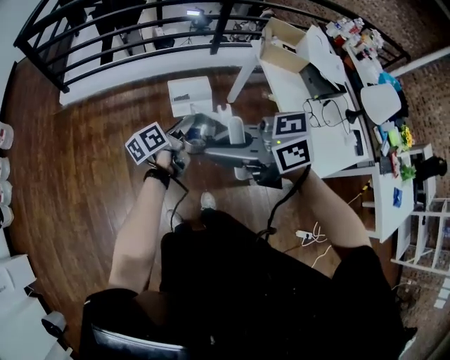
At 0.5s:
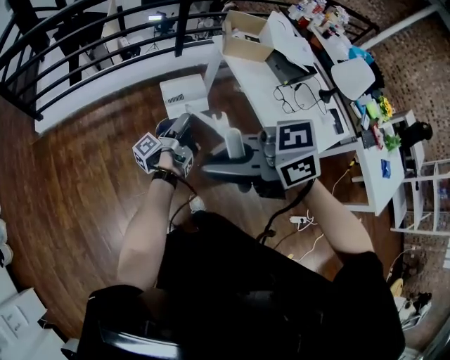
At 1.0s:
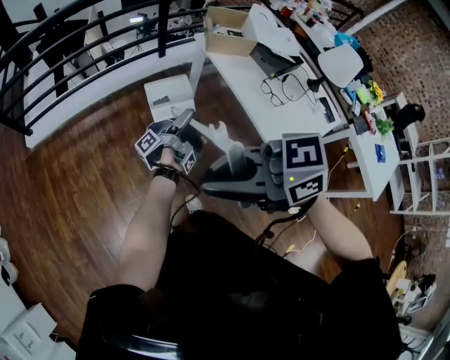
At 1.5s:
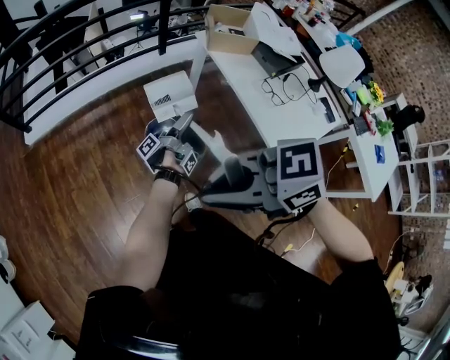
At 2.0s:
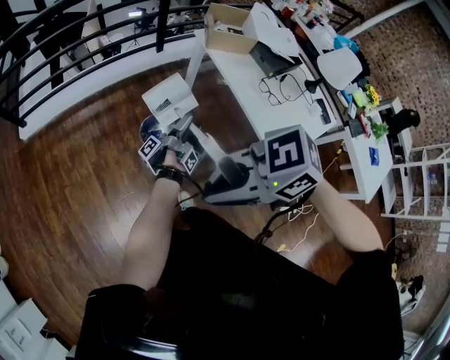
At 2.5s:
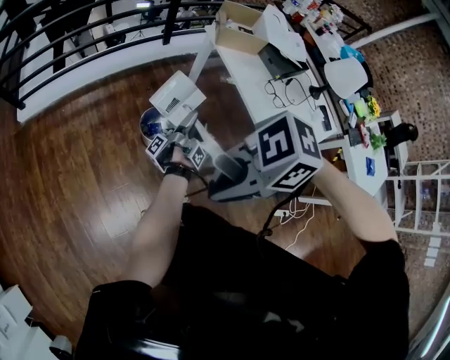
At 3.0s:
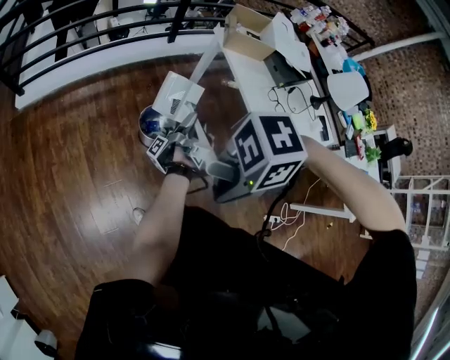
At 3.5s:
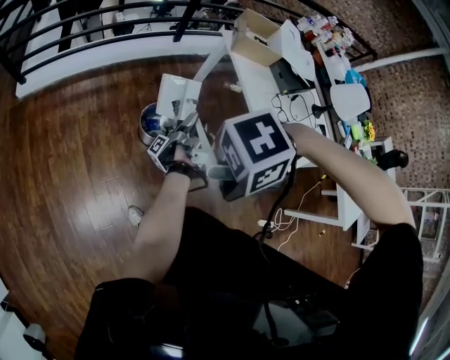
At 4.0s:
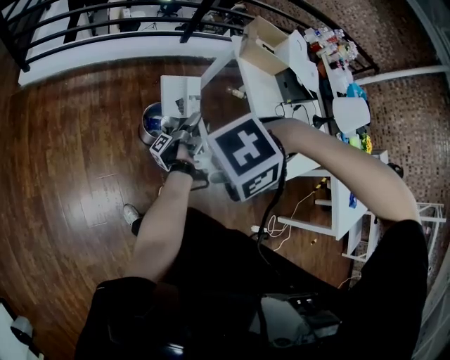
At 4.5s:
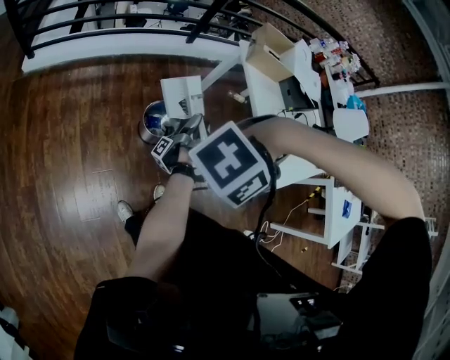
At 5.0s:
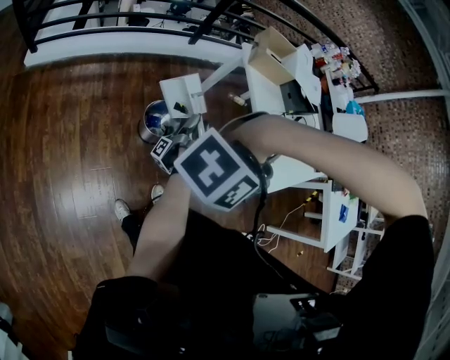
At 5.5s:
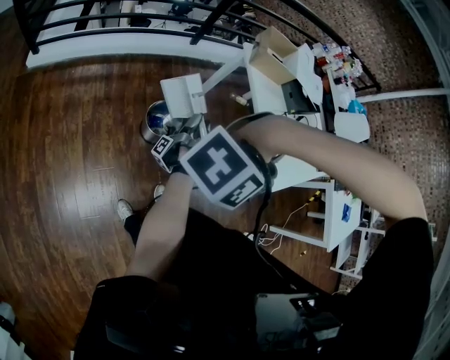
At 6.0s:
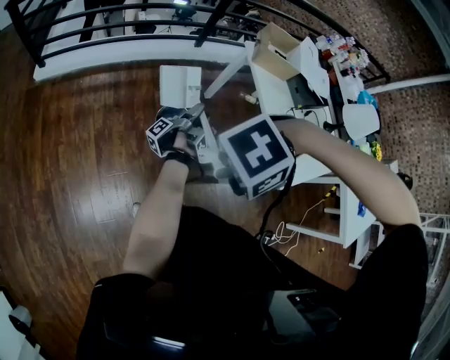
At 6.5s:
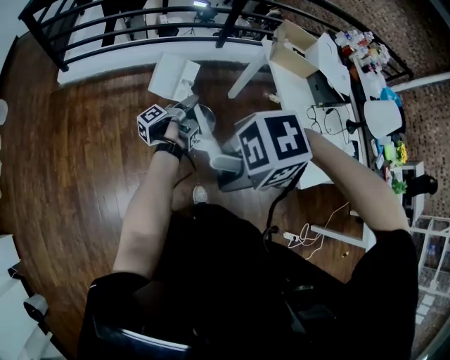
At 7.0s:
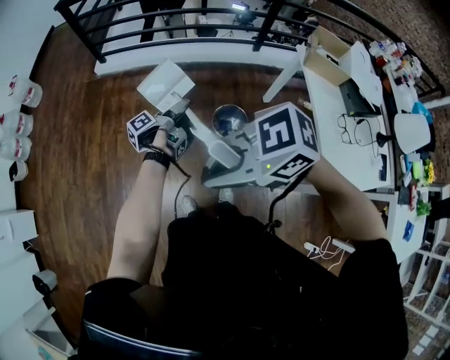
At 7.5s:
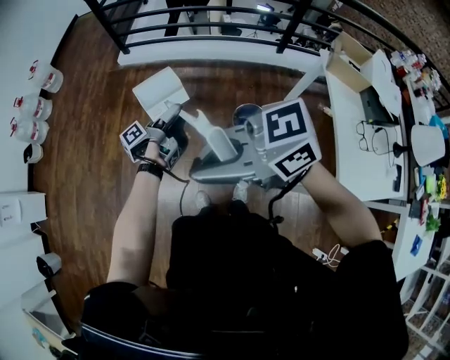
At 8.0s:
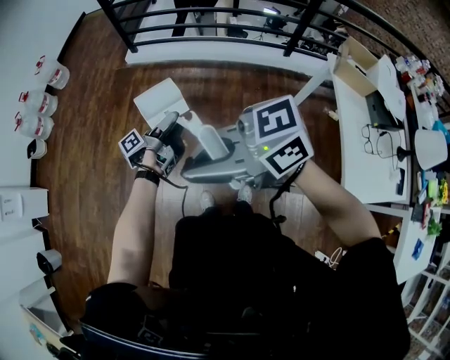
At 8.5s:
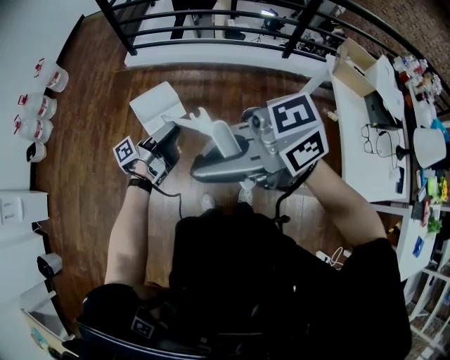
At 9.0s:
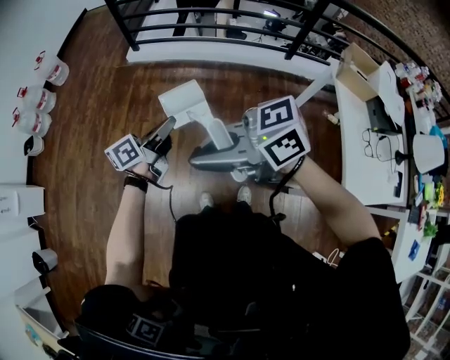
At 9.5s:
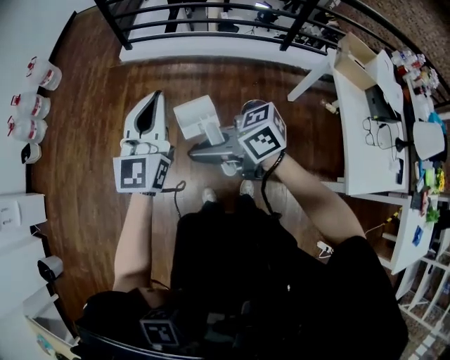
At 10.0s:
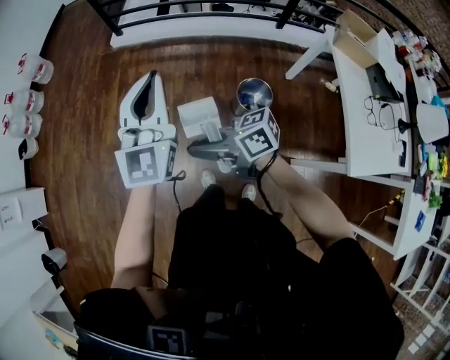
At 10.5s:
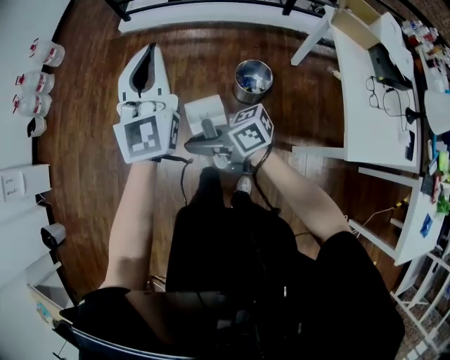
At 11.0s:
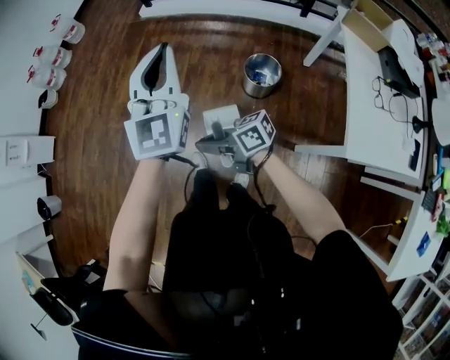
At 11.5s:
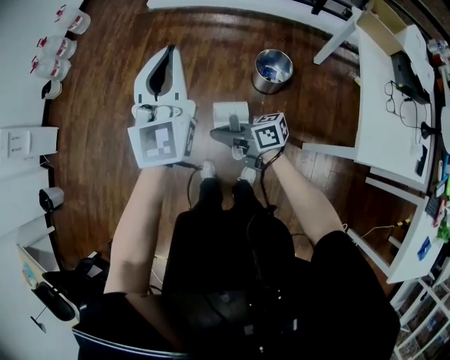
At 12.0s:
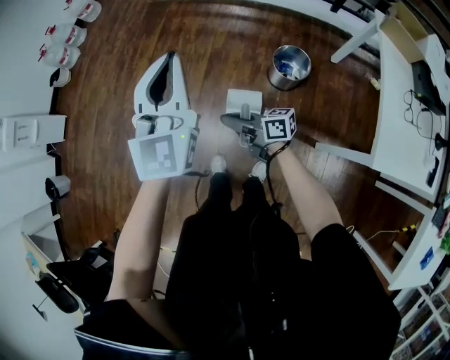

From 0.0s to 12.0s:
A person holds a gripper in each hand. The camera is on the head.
From 0.0s to 2.0s: The left gripper moves approximately 20 cm, and twists roughly 60 degrees counterclockwise, seen from behind; the right gripper moves roughly 10 cm.
From 2.0s to 4.0s: Both grippers move downward, roughly 5 cm. The left gripper changes its angle by some 30 degrees; the right gripper swivels some 80 degrees.
From 4.0s to 6.0s: The left gripper ends up approximately 5 cm from where it was.
From 6.0s to 8.0s: The left gripper ends up some 35 cm from where it was, and rotates about 40 degrees. Meanwhile the right gripper changes place by roughly 25 cm, and angles its fingers upward, by about 50 degrees.
From 8.0s to 10.0s: The left gripper heads upward, covering some 25 cm, twists roughly 100 degrees clockwise, seen from behind, and closes its fingers, while the right gripper goes roughly 20 cm downward, and changes its angle by roughly 30 degrees.
From 10.0s to 12.0s: The left gripper shifts approximately 15 cm backward, while the right gripper is displaced downward and backward by approximately 20 cm.

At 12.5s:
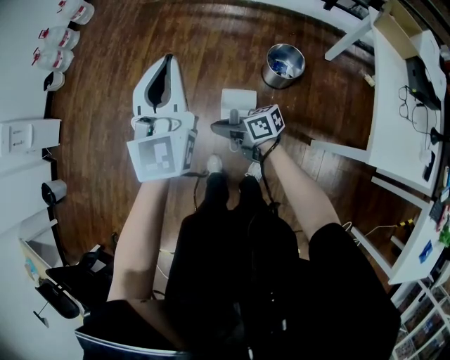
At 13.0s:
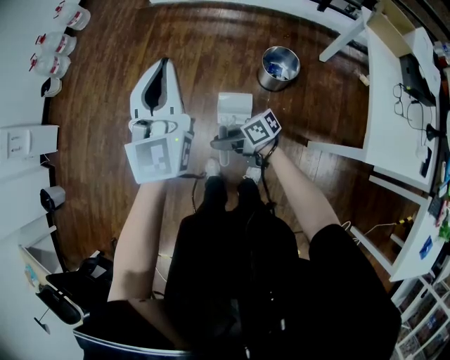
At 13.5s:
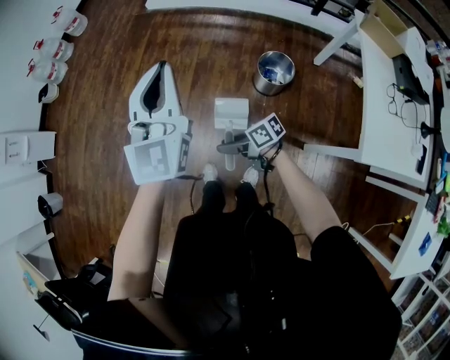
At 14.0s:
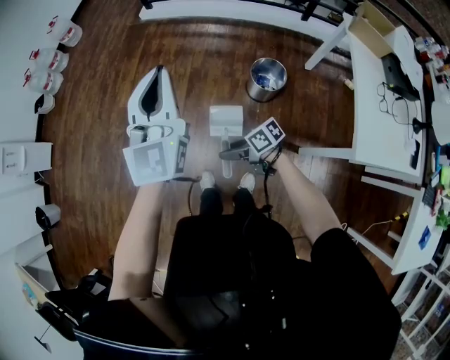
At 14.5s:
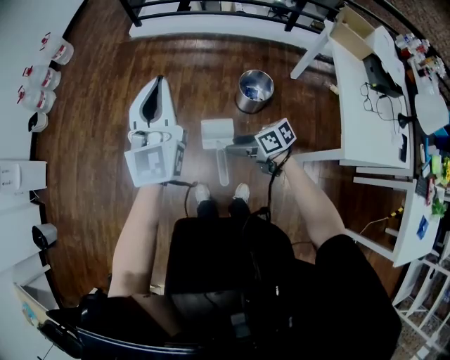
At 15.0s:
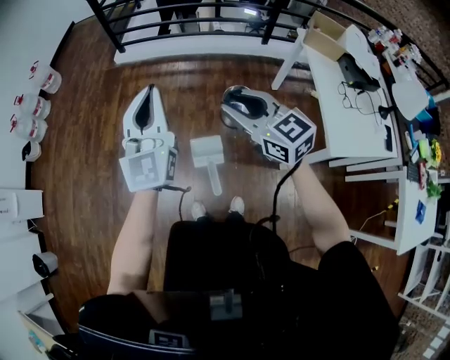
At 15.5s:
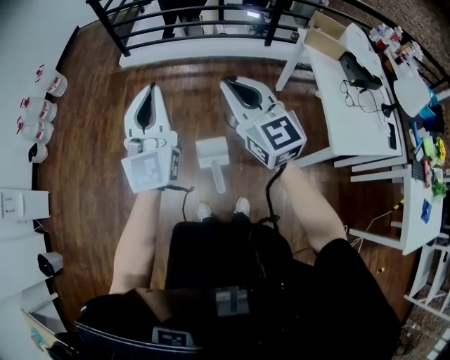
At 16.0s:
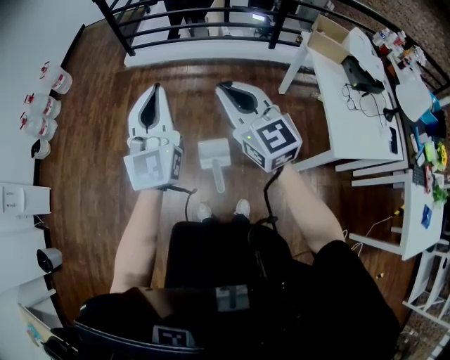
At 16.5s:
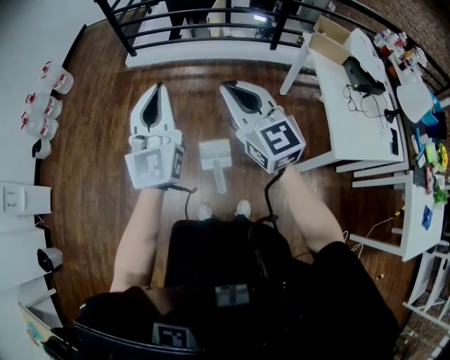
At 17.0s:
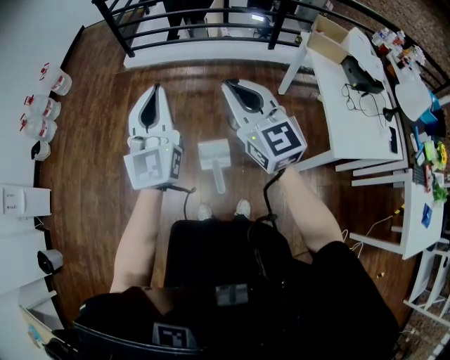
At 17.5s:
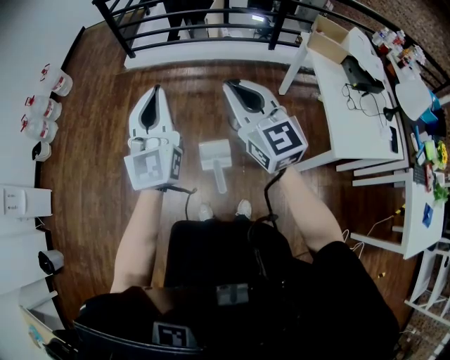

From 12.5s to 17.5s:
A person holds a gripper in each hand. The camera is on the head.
From 12.5s to 15.0s: The left gripper moves upward, approximately 5 cm; the right gripper travels upward by some 30 cm, changes its angle by roughly 70 degrees, and opens.
From 15.0s to 17.5s: The right gripper shifts about 5 cm upward, rotates about 20 degrees, and closes up.

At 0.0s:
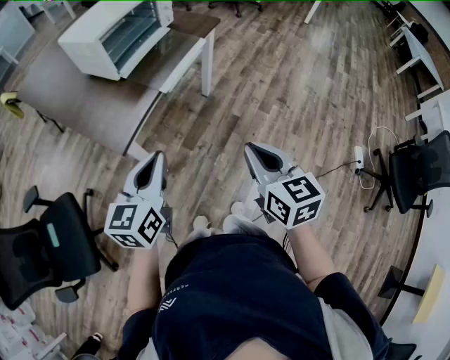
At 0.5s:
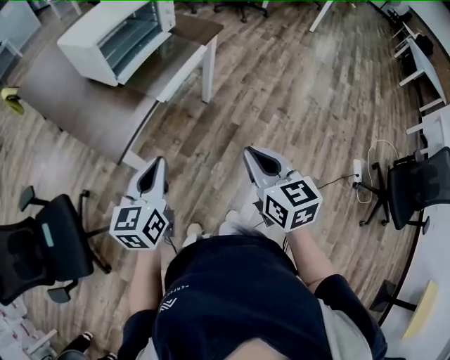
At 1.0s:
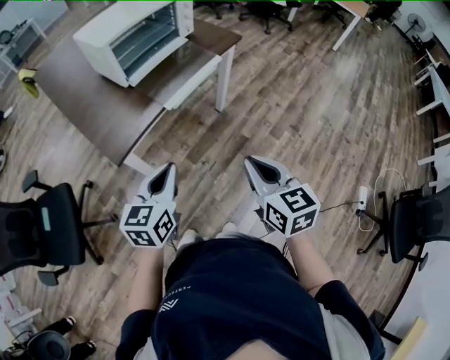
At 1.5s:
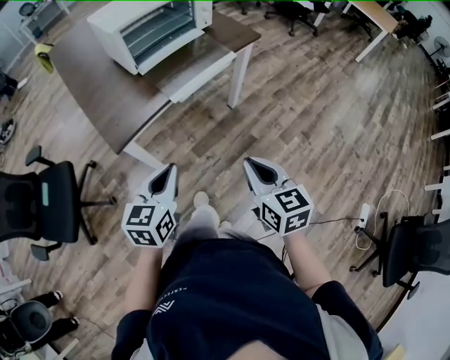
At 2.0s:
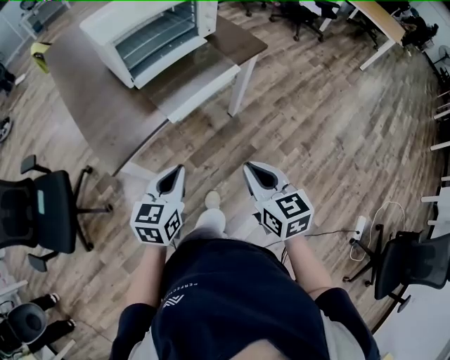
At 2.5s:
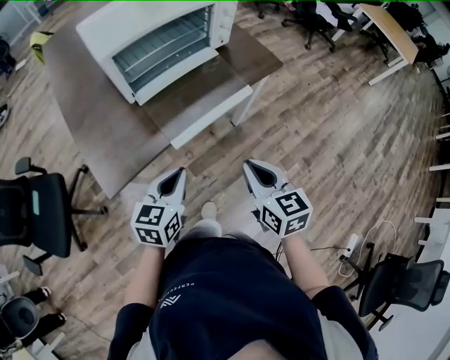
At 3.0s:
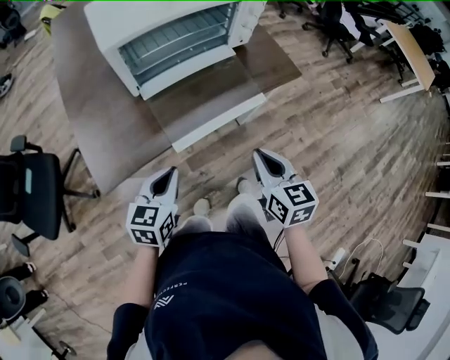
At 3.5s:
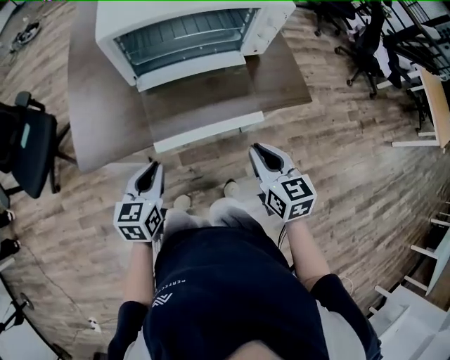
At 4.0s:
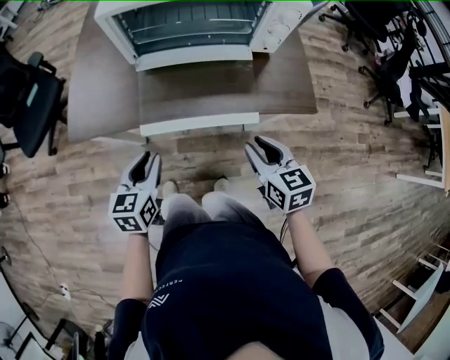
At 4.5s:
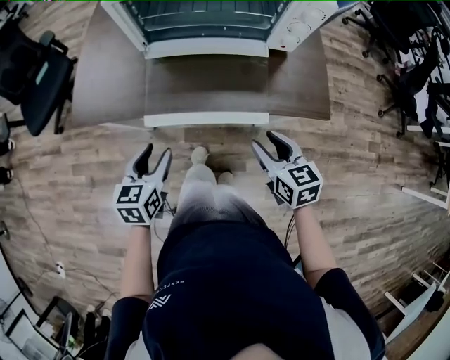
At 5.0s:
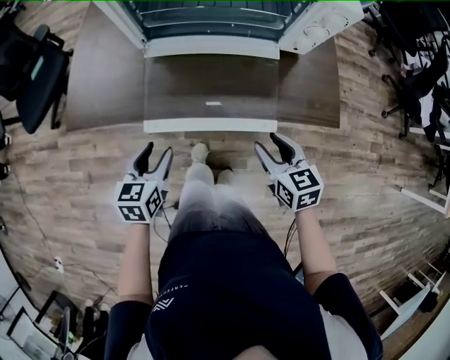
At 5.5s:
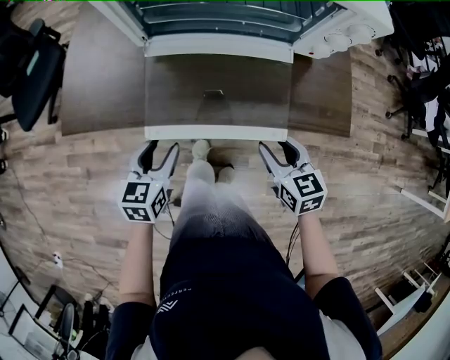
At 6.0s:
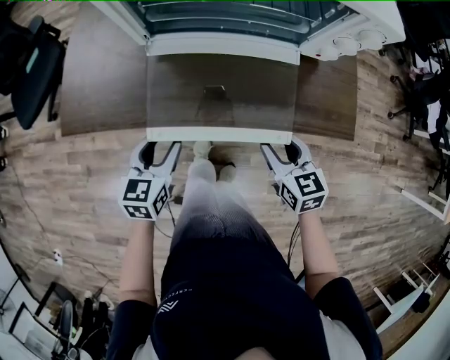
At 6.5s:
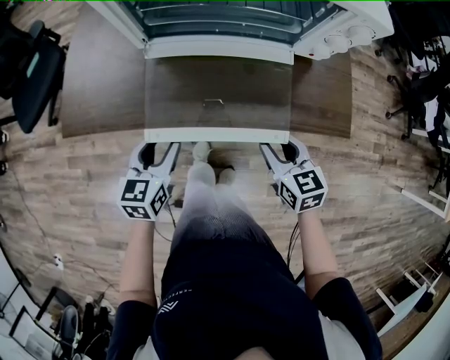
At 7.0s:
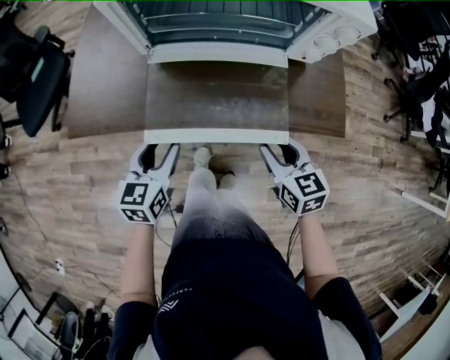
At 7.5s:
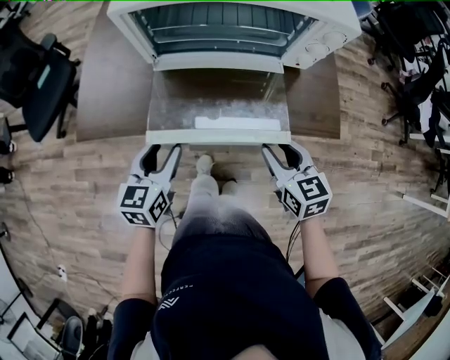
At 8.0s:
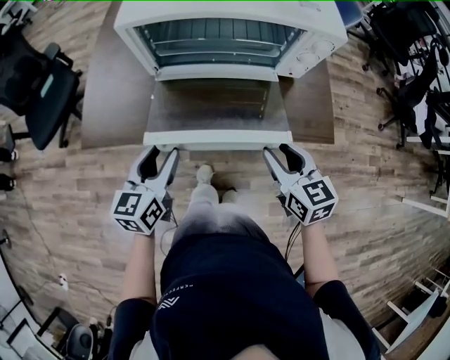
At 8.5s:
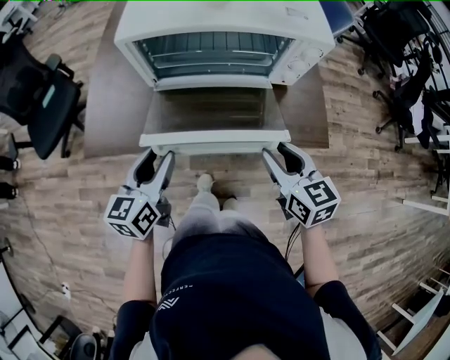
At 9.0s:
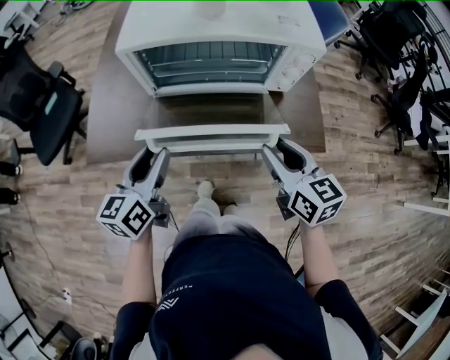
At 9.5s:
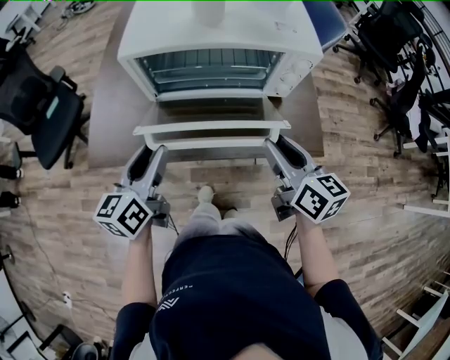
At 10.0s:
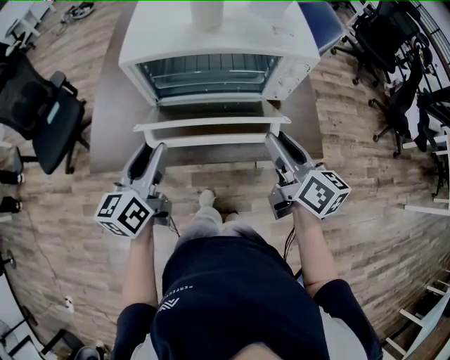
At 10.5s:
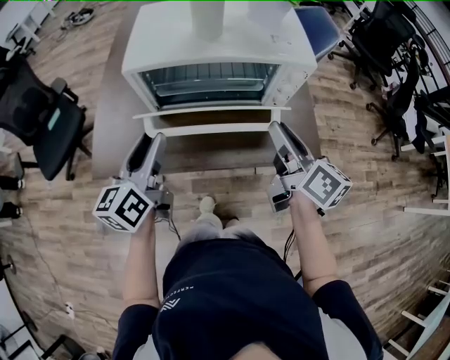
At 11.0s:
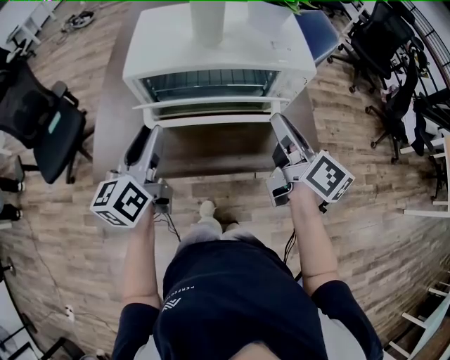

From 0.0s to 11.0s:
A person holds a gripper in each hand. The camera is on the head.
From 0.0s to 2.0s: The left gripper goes approximately 20 cm forward, downward and to the right. The right gripper moves forward and downward, roughly 20 cm, and swivels roughly 20 degrees.
From 2.0s to 3.5s: The left gripper ends up approximately 15 cm from where it was, and rotates approximately 30 degrees. Meanwhile the right gripper ends up approximately 30 cm from where it was, and changes its angle by approximately 20 degrees.
From 3.5s to 5.5s: The right gripper heads downward and forward, covering some 15 cm, swivels roughly 20 degrees, and opens up, while the left gripper moves downward, about 5 cm, and opens up.
From 5.5s to 7.5s: The grippers both shift upward by some 5 cm.
From 7.5s to 9.0s: Both grippers travel together upward, roughly 10 cm.
From 9.0s to 11.0s: Both grippers move upward and forward, roughly 10 cm. The right gripper rotates approximately 40 degrees.
